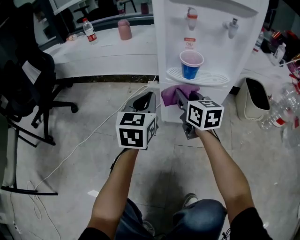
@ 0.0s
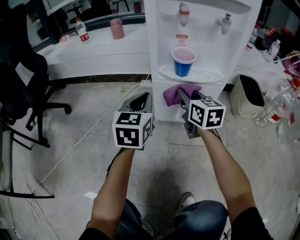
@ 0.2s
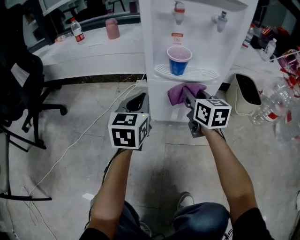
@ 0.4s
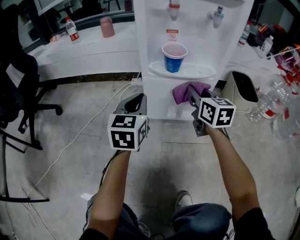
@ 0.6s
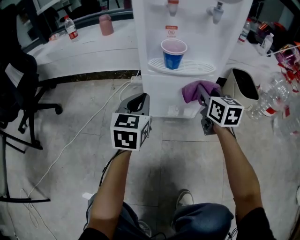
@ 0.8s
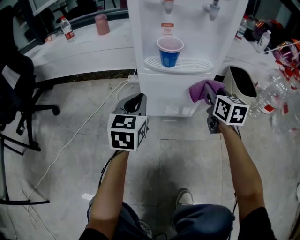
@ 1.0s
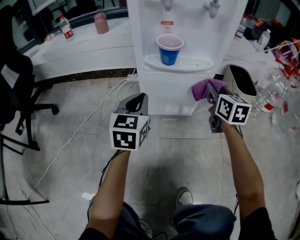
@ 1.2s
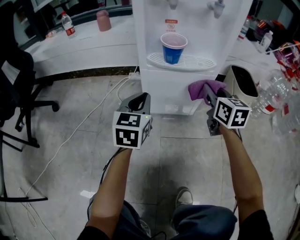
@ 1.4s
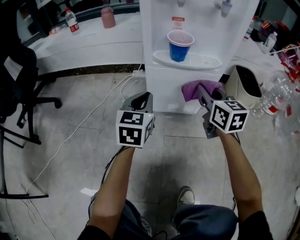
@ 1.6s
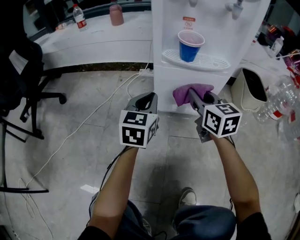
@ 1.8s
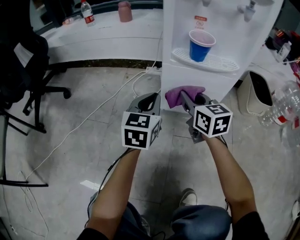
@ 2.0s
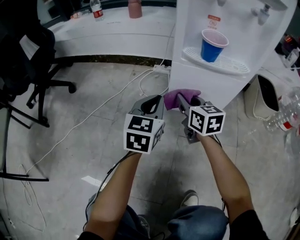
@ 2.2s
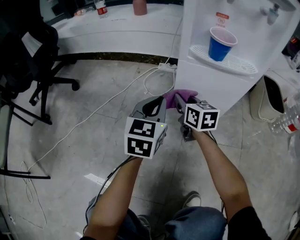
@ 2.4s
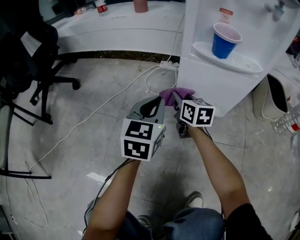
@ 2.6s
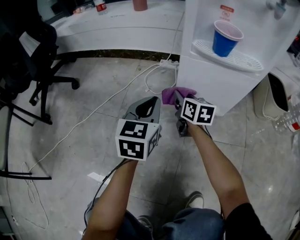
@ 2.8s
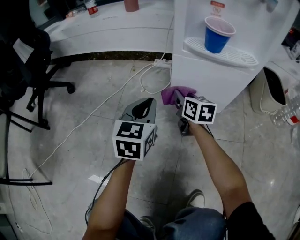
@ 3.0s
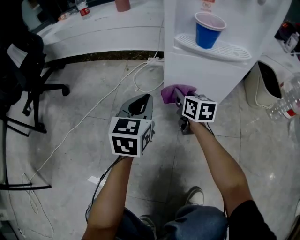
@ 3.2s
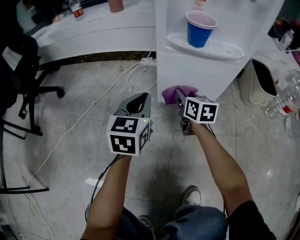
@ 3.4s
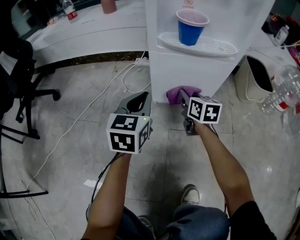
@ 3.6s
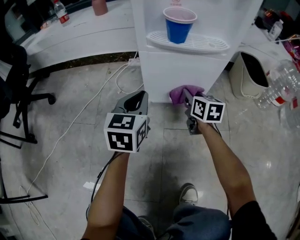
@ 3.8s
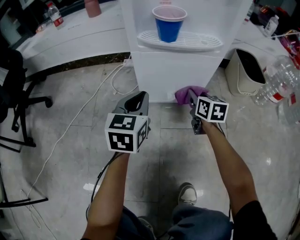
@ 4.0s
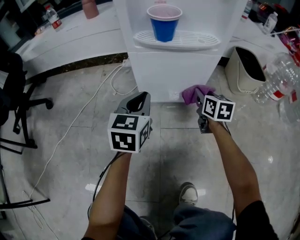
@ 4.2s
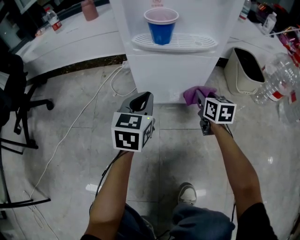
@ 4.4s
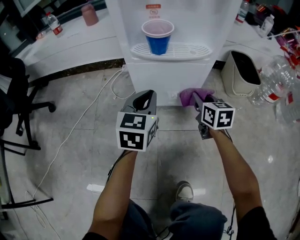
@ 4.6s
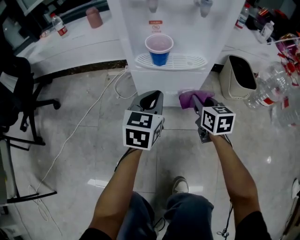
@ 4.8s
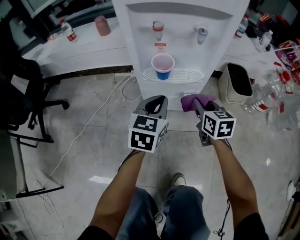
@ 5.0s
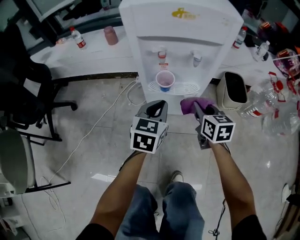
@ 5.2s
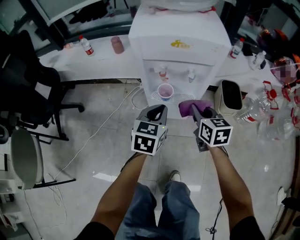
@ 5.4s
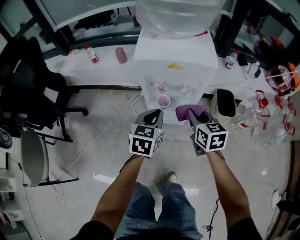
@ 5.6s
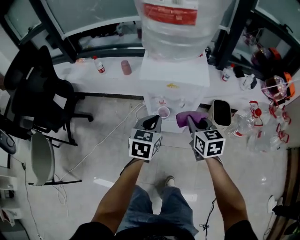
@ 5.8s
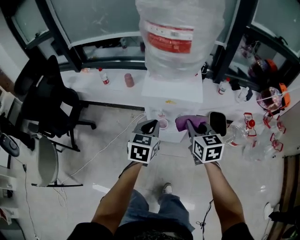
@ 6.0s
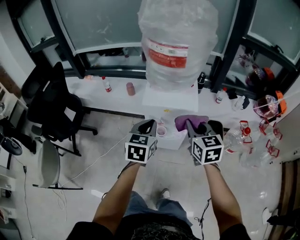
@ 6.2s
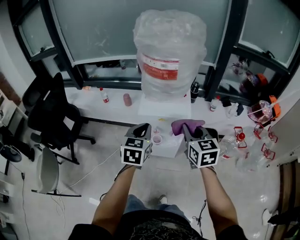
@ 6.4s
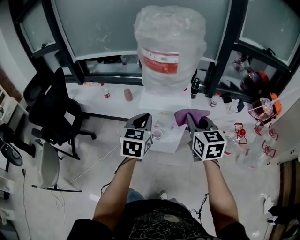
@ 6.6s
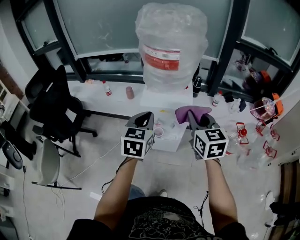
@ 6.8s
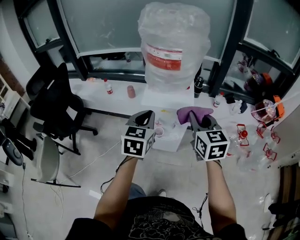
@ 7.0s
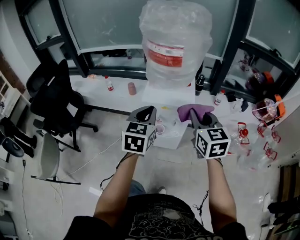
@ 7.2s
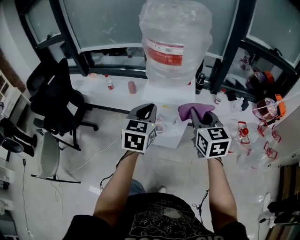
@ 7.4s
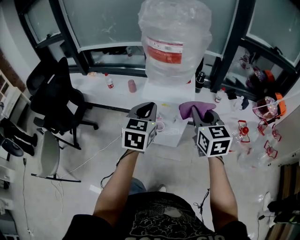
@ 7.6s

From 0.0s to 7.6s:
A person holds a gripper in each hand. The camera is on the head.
From 0.0s to 1.6s: The right gripper moves to the right, some 10 cm, while the left gripper shifts some 5 cm downward.
From 1.6s to 3.0s: The left gripper moves to the left, about 5 cm. Meanwhile the right gripper is displaced downward, to the left and forward by approximately 25 cm, and changes its angle by roughly 20 degrees.
From 3.0s to 4.6s: The left gripper is displaced to the right by some 15 cm. The right gripper moves to the right, roughly 20 cm.
From 4.6s to 6.0s: The grippers both shift upward by roughly 50 cm.
From 6.0s to 7.6s: The two grippers go some 15 cm upward.

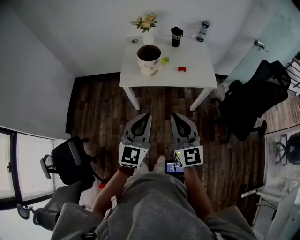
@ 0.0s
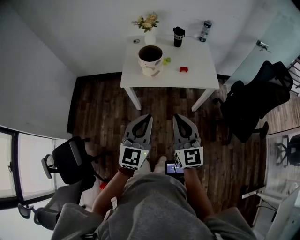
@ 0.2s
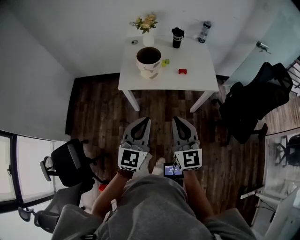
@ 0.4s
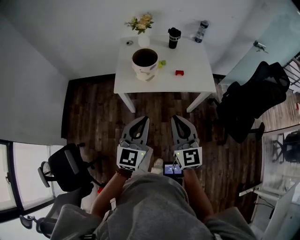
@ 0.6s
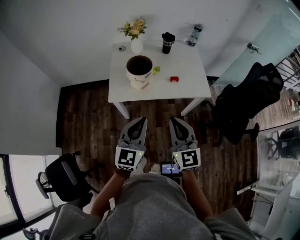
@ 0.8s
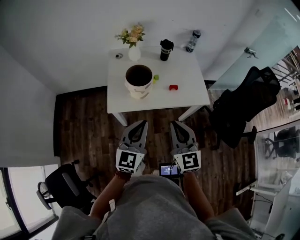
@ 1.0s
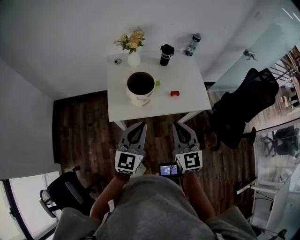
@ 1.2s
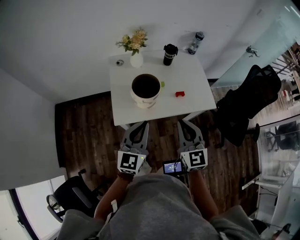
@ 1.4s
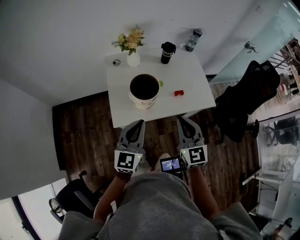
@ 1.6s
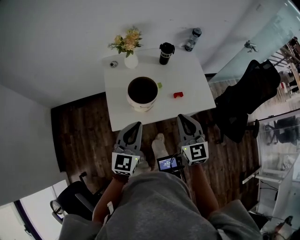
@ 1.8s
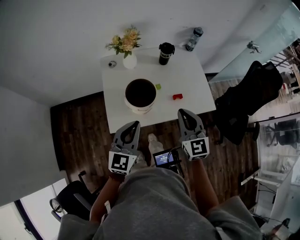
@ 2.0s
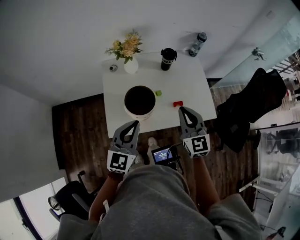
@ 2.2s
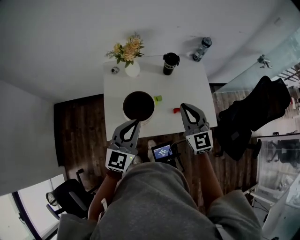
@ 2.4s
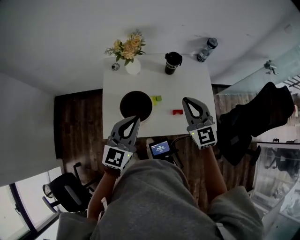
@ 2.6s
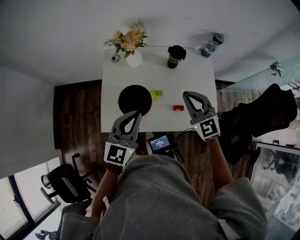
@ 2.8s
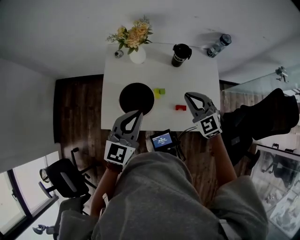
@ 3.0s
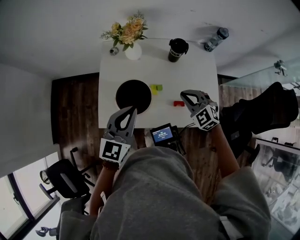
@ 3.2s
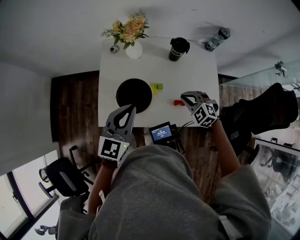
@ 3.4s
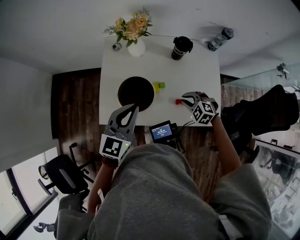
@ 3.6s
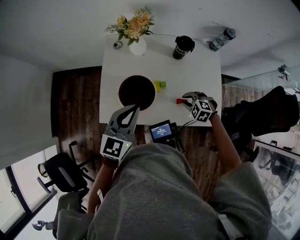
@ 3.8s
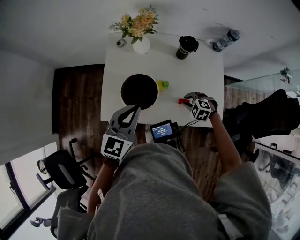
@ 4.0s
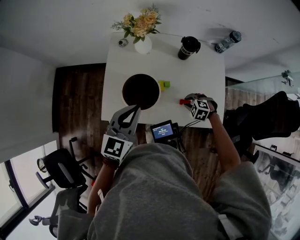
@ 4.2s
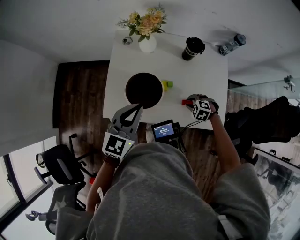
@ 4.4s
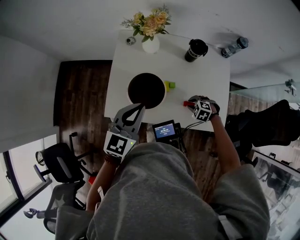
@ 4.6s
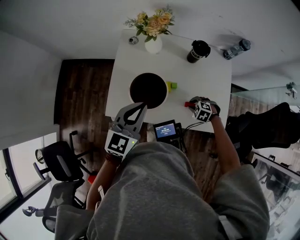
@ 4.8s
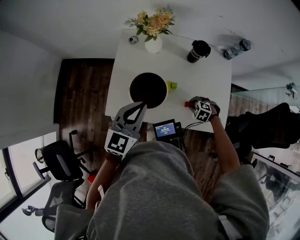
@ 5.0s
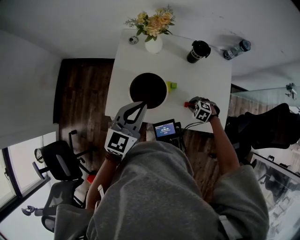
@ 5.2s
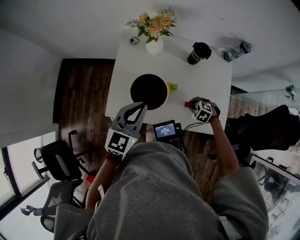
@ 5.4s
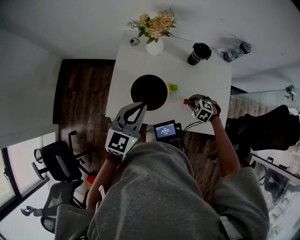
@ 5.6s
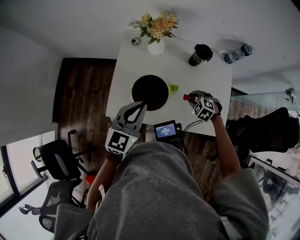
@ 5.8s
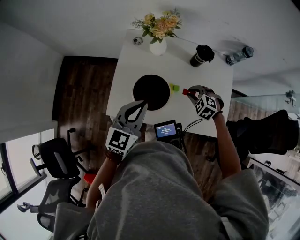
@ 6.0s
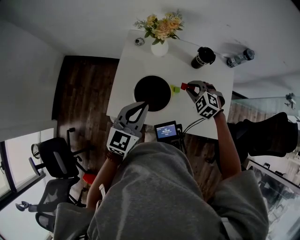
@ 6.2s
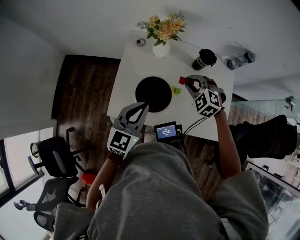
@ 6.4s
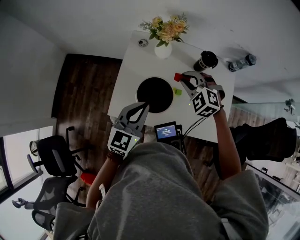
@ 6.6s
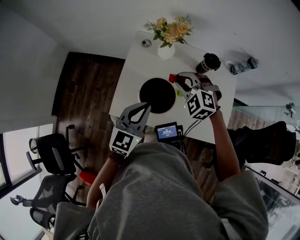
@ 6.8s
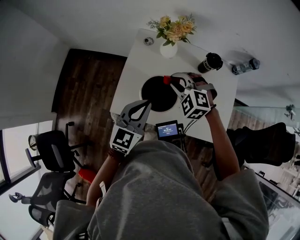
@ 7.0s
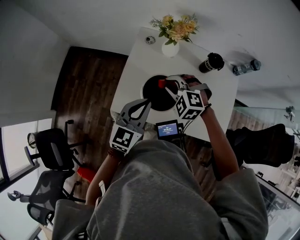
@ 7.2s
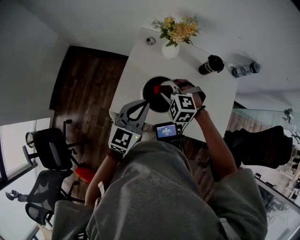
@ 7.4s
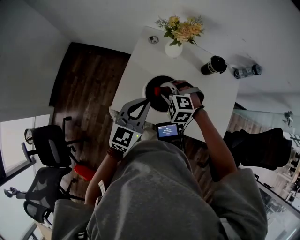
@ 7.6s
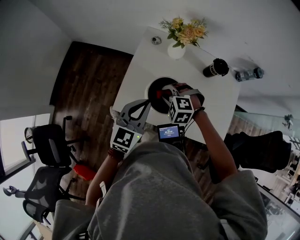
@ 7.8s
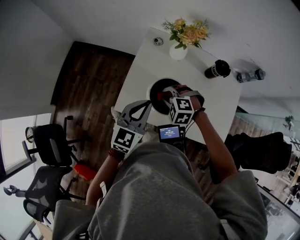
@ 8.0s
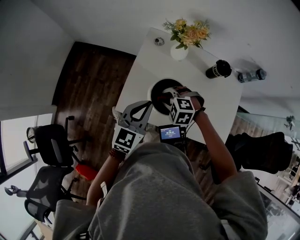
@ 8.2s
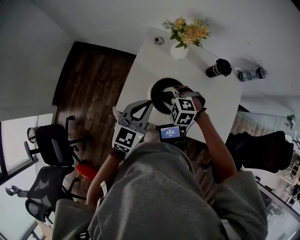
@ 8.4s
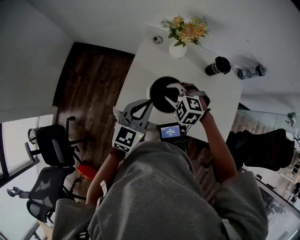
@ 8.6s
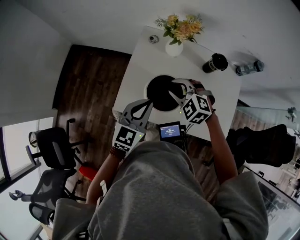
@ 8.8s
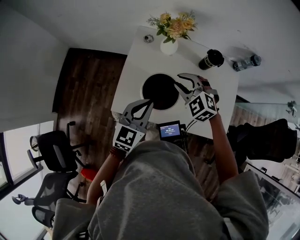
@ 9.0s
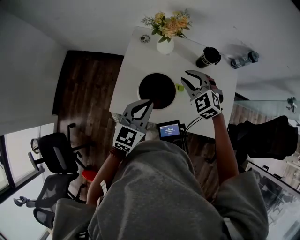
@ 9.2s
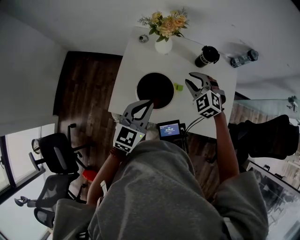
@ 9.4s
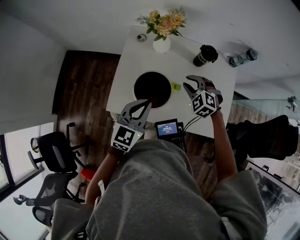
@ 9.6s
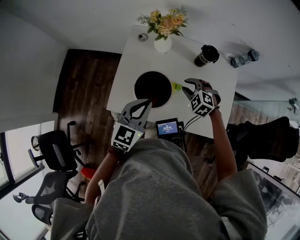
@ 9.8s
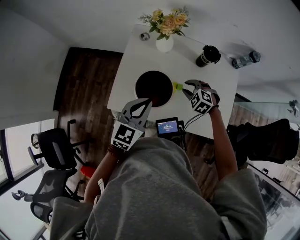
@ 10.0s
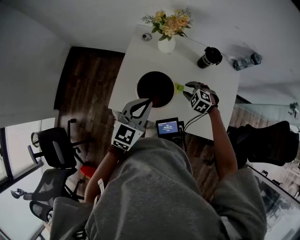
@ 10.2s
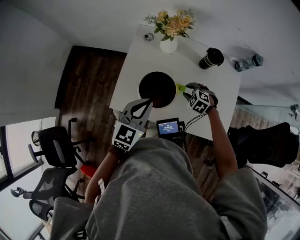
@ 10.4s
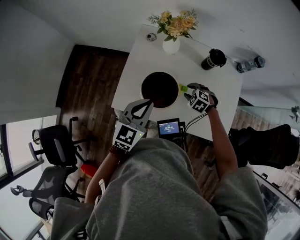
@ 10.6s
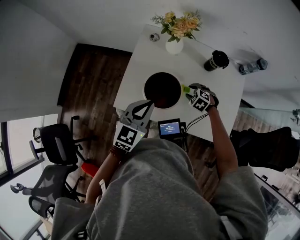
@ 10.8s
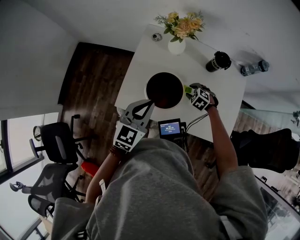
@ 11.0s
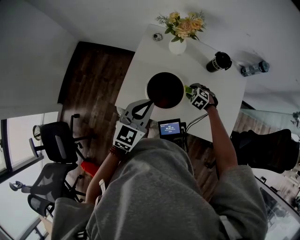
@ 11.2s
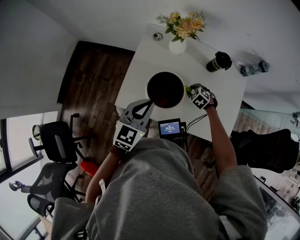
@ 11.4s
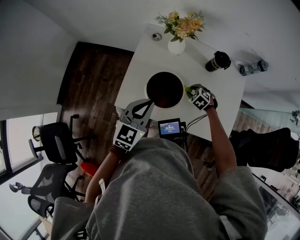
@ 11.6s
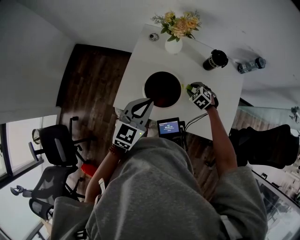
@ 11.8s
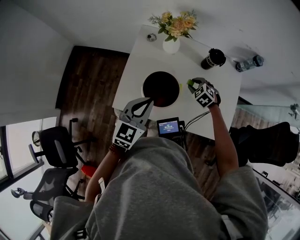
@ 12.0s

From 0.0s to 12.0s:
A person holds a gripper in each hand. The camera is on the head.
From 0.0s to 1.6s: Both grippers move forward, approximately 25 cm.
From 1.6s to 3.0s: The left gripper moves forward and to the right, some 20 cm. Meanwhile the right gripper moves forward, approximately 25 cm, and rotates approximately 40 degrees.
From 3.0s to 4.4s: The right gripper heads downward, covering about 25 cm, angles its fingers downward, by some 50 degrees, and opens its fingers.
From 4.4s to 6.0s: The right gripper heads upward, covering roughly 10 cm.
From 6.0s to 7.6s: The right gripper moves to the left, roughly 20 cm, and rotates about 30 degrees.
From 7.6s to 9.0s: The right gripper shifts roughly 10 cm to the right and upward, and swivels approximately 30 degrees.
From 9.0s to 10.4s: The right gripper is displaced downward and to the right by roughly 20 cm, and changes its angle by approximately 20 degrees.
From 10.4s to 12.0s: There are only small adjustments of the grippers.

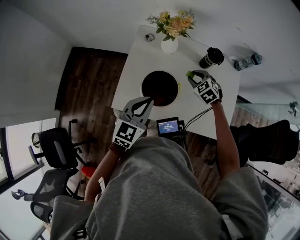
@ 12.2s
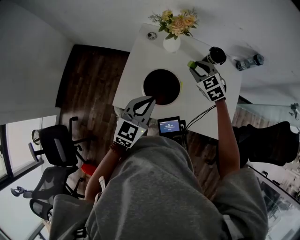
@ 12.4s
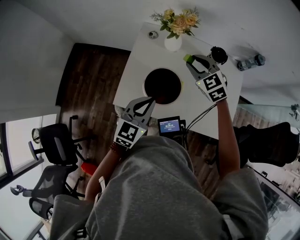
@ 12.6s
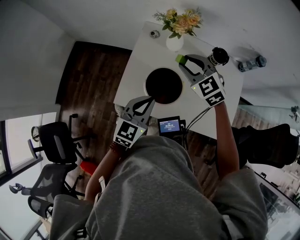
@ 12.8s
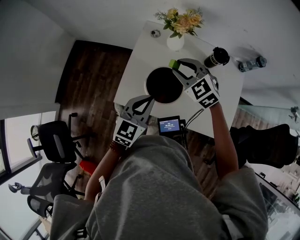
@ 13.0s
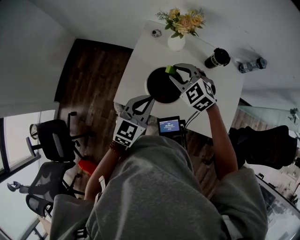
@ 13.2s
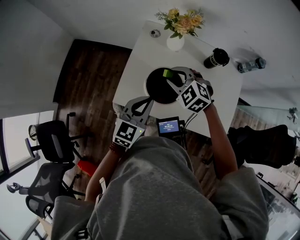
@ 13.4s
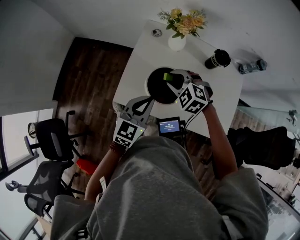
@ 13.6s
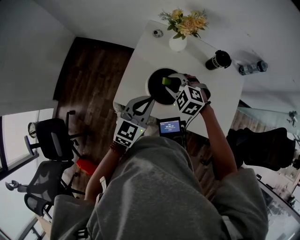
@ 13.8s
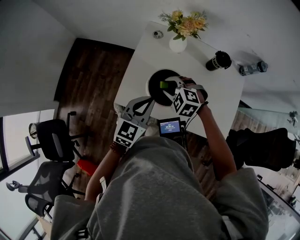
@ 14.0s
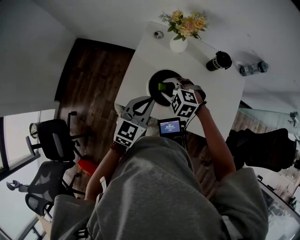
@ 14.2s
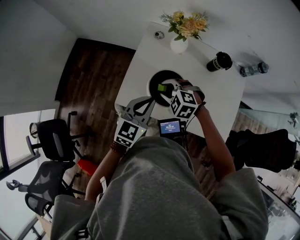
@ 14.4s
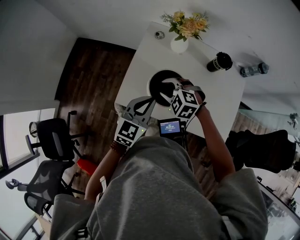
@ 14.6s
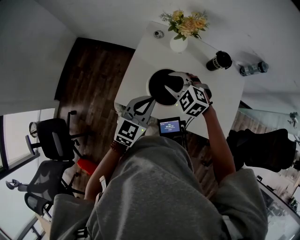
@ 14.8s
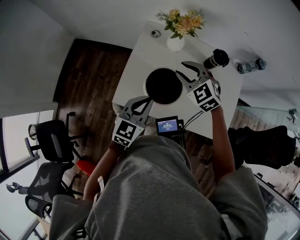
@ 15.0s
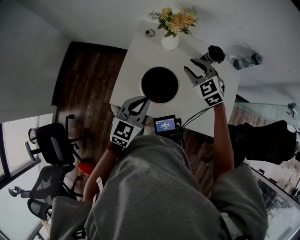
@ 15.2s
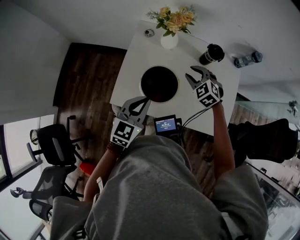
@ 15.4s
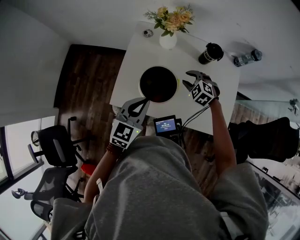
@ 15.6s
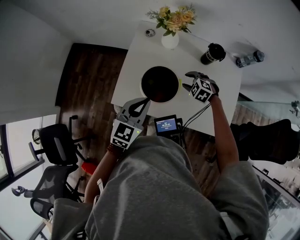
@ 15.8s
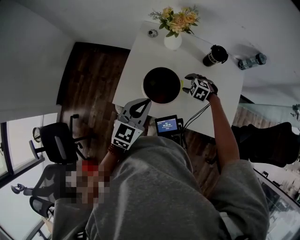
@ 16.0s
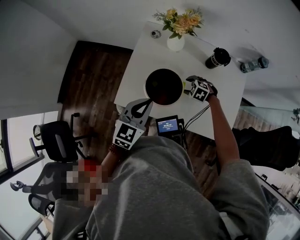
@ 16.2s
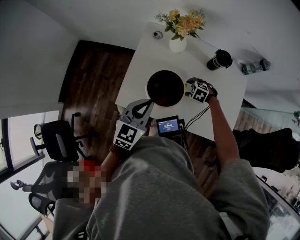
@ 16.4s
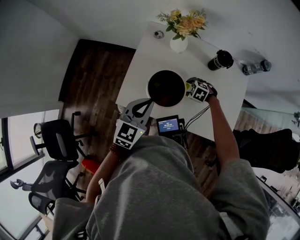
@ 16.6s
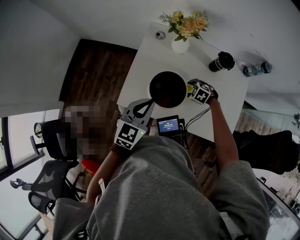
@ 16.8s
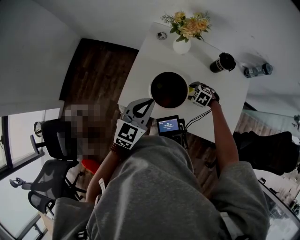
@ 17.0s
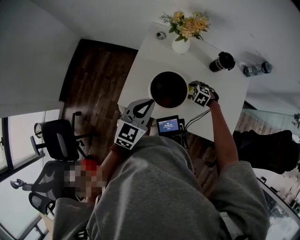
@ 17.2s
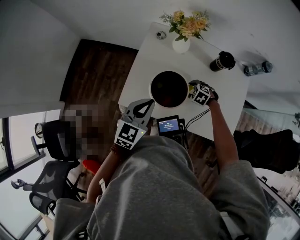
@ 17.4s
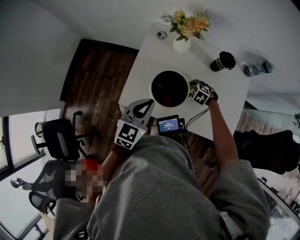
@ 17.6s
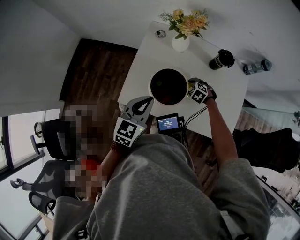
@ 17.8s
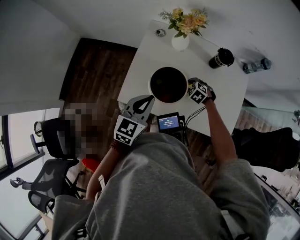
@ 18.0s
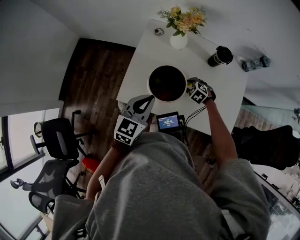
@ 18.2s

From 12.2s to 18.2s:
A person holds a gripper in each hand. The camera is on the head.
From 12.2s to 13.8s: The right gripper is displaced to the left by approximately 15 cm, and rotates about 30 degrees.
From 13.8s to 15.2s: The right gripper moves to the right, upward and forward, roughly 15 cm, and rotates approximately 30 degrees.
From 15.2s to 16.6s: The right gripper heads downward, covering some 25 cm, tips its fingers downward by roughly 30 degrees, and opens its fingers.
From 16.6s to 18.2s: The right gripper closes.
